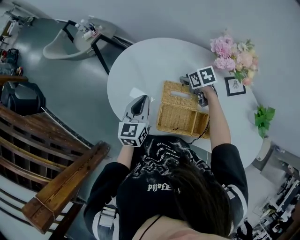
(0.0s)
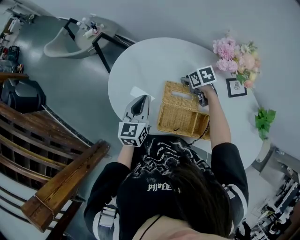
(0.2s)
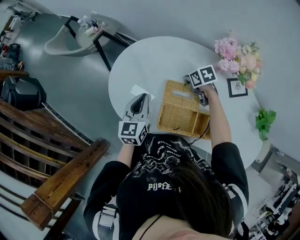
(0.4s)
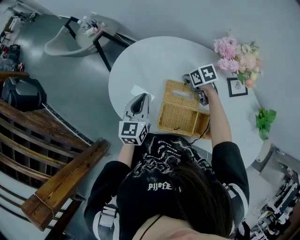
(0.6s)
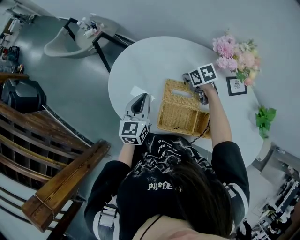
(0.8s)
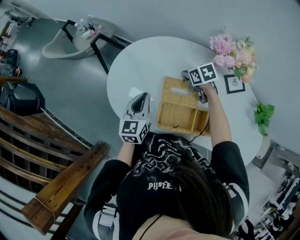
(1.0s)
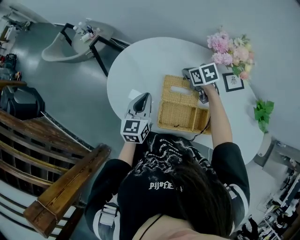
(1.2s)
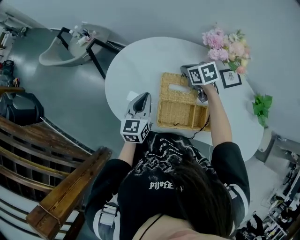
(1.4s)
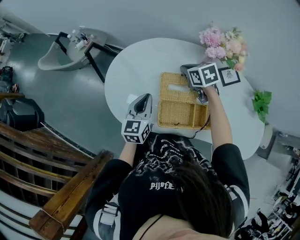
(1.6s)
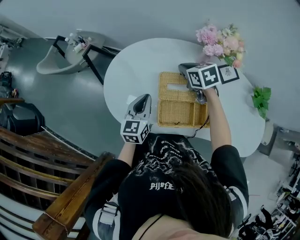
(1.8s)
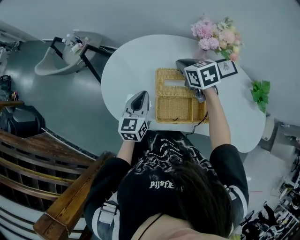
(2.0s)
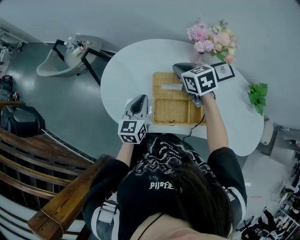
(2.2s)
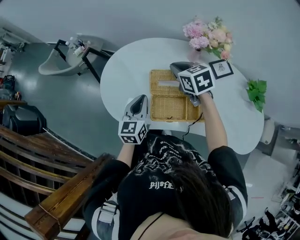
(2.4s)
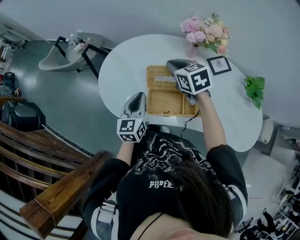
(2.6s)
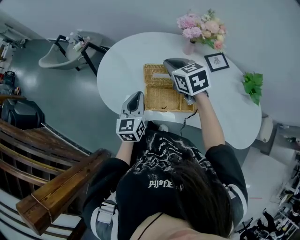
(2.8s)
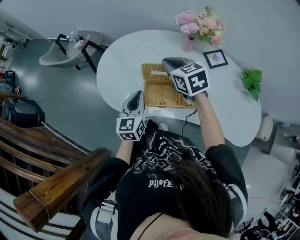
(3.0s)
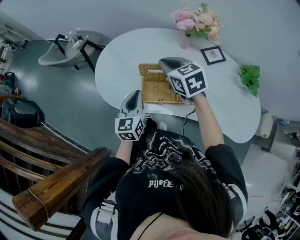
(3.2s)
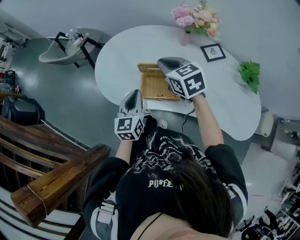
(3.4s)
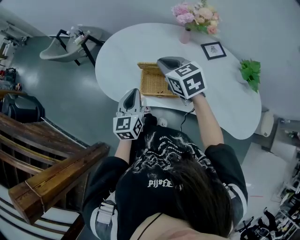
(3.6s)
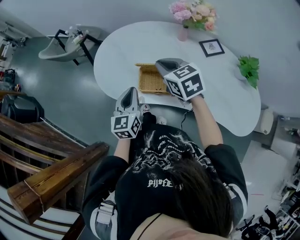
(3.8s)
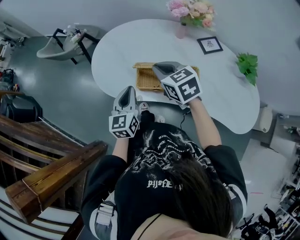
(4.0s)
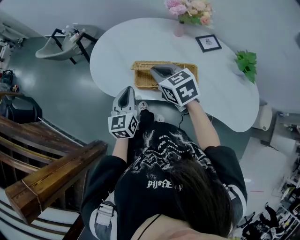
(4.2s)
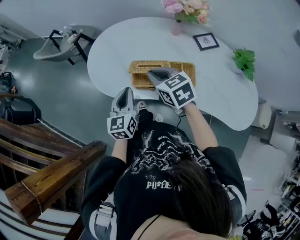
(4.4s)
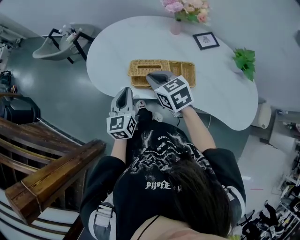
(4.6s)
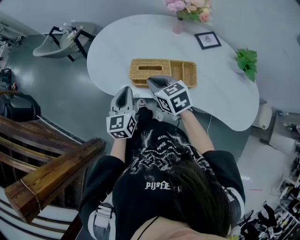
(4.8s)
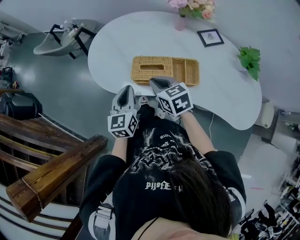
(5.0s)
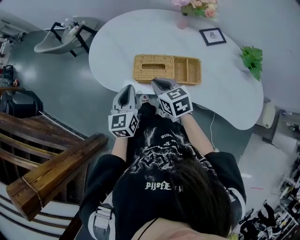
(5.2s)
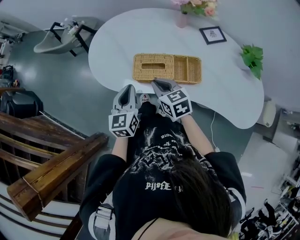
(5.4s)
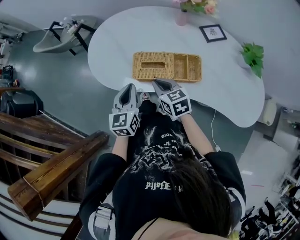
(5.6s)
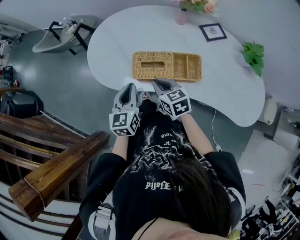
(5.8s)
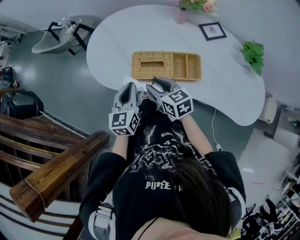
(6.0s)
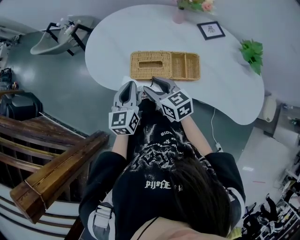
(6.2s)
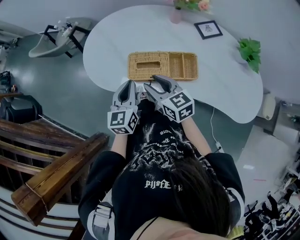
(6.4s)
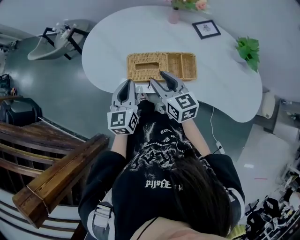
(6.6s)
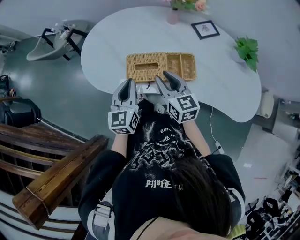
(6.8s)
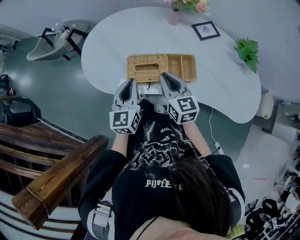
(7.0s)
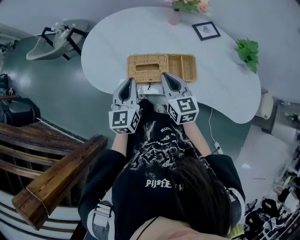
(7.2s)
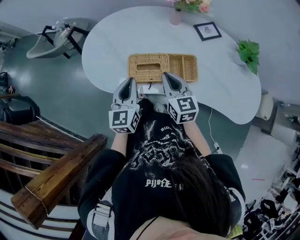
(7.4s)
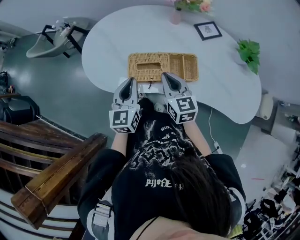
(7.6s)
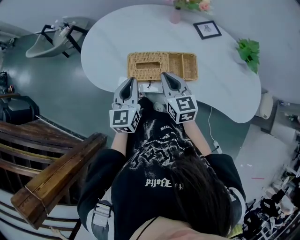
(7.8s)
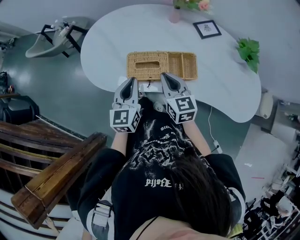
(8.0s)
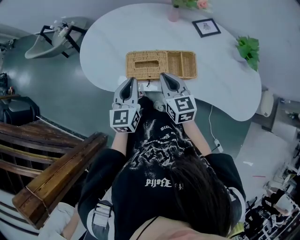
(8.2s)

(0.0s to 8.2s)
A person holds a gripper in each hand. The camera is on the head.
0.0s - 1.6s: The right gripper moves upward, approximately 10 cm, and closes.
1.6s - 3.2s: The right gripper travels backward and upward by approximately 20 cm, and changes its angle by about 20 degrees. Meanwhile the left gripper goes roughly 15 cm backward.
3.2s - 5.0s: The left gripper goes about 5 cm backward; the right gripper is displaced backward and downward by about 15 cm.
5.0s - 6.6s: The right gripper rotates approximately 20 degrees, and opens its fingers.
6.6s - 8.2s: The right gripper closes its fingers.

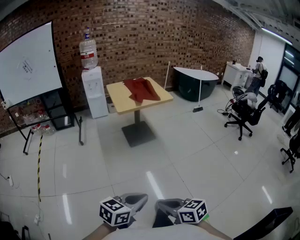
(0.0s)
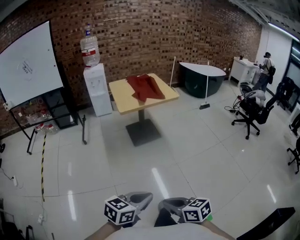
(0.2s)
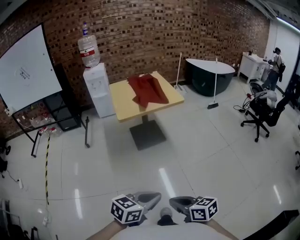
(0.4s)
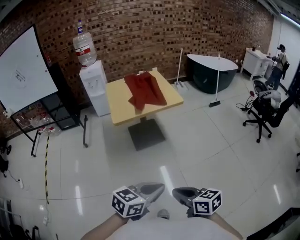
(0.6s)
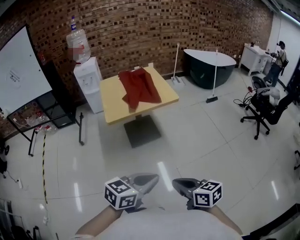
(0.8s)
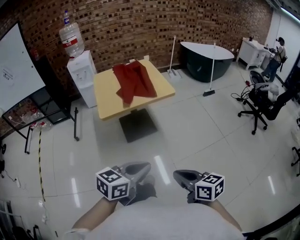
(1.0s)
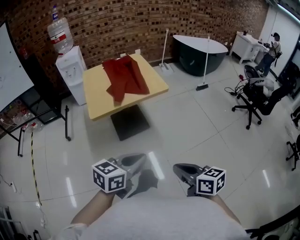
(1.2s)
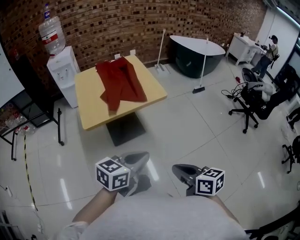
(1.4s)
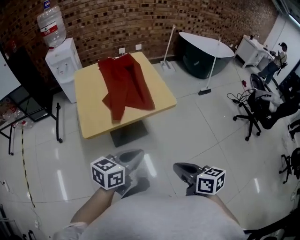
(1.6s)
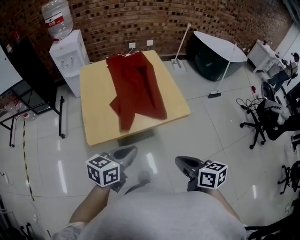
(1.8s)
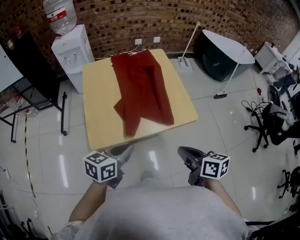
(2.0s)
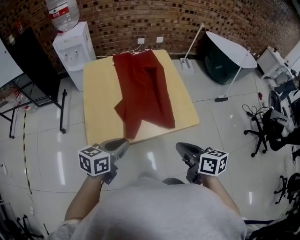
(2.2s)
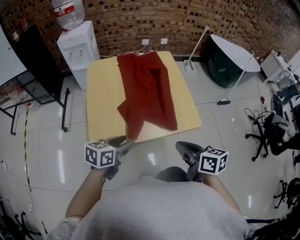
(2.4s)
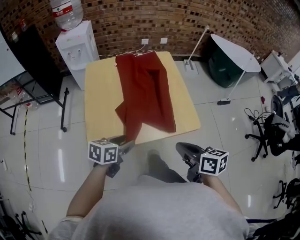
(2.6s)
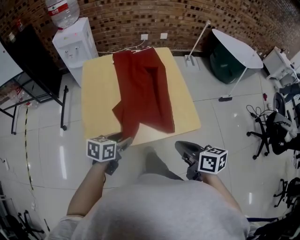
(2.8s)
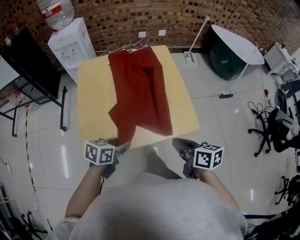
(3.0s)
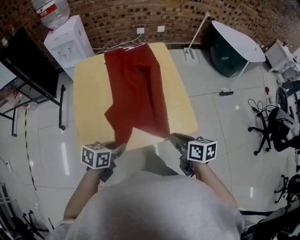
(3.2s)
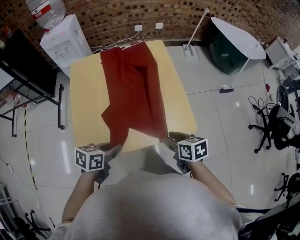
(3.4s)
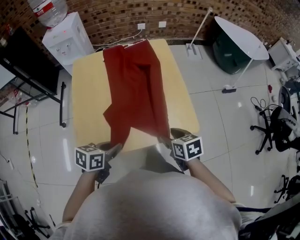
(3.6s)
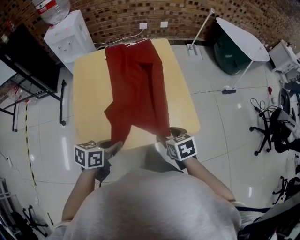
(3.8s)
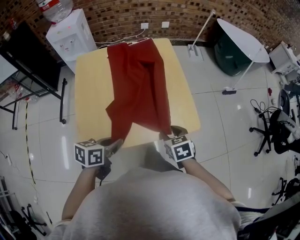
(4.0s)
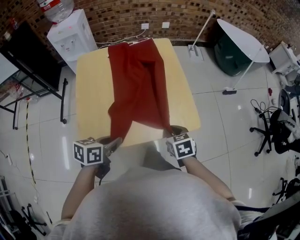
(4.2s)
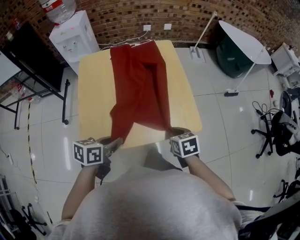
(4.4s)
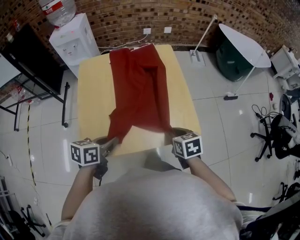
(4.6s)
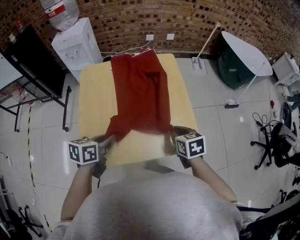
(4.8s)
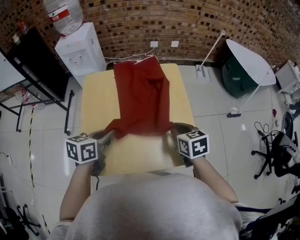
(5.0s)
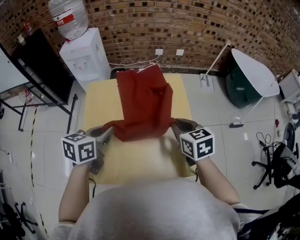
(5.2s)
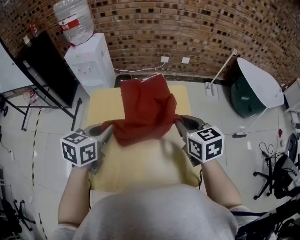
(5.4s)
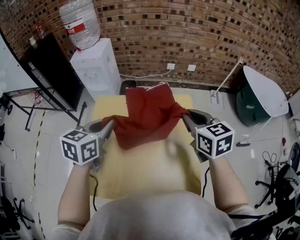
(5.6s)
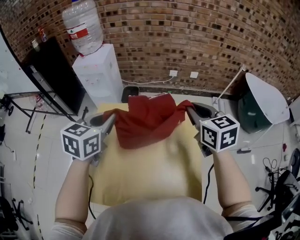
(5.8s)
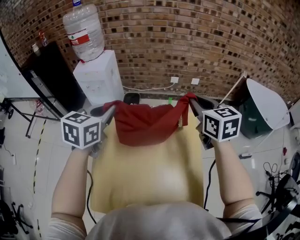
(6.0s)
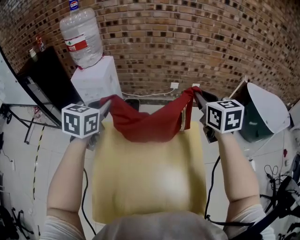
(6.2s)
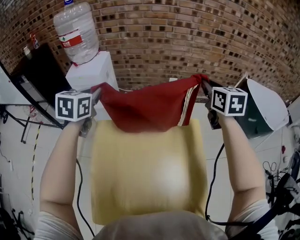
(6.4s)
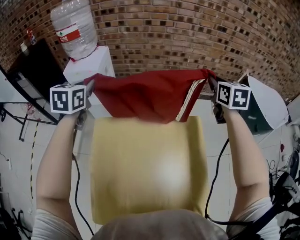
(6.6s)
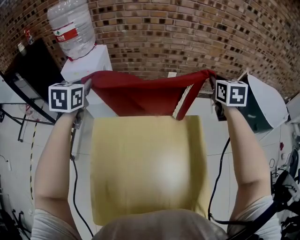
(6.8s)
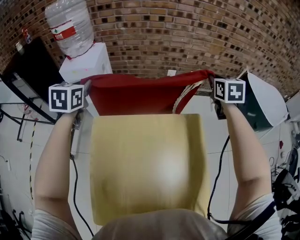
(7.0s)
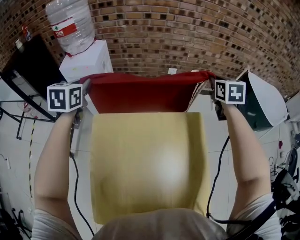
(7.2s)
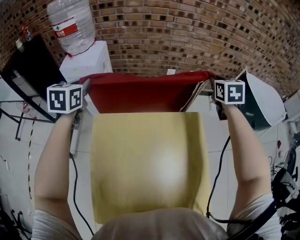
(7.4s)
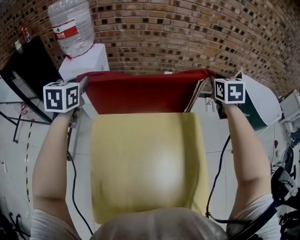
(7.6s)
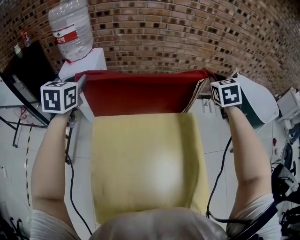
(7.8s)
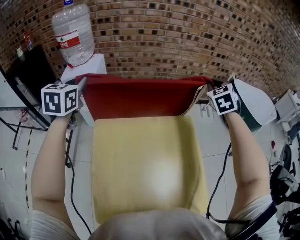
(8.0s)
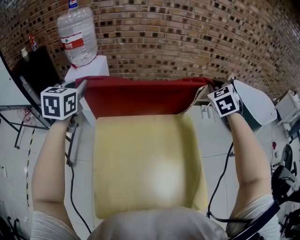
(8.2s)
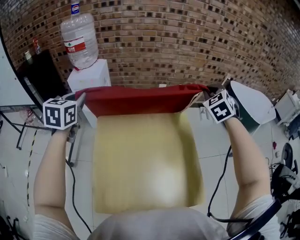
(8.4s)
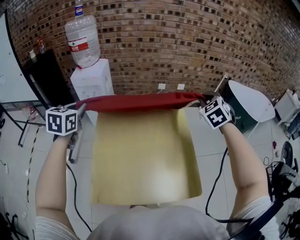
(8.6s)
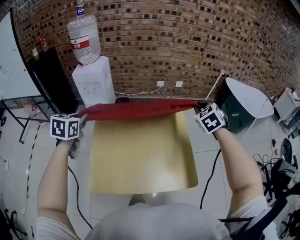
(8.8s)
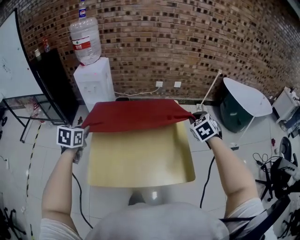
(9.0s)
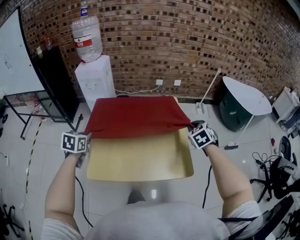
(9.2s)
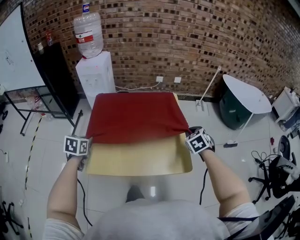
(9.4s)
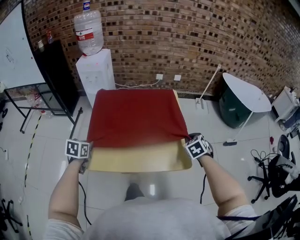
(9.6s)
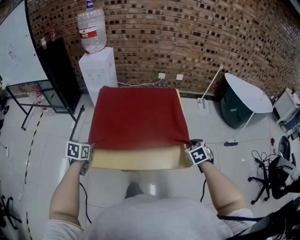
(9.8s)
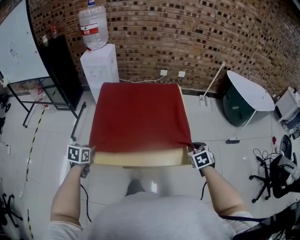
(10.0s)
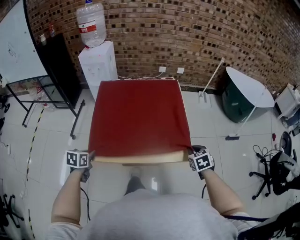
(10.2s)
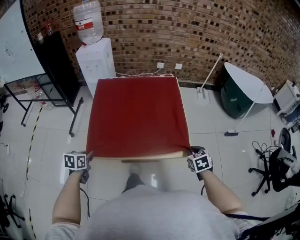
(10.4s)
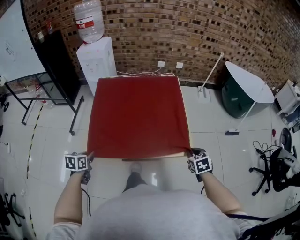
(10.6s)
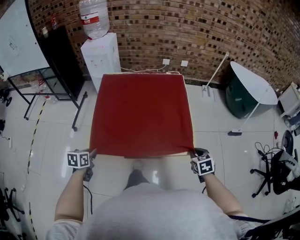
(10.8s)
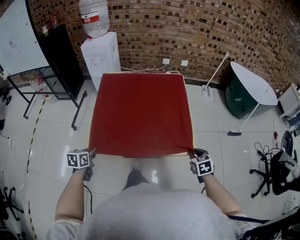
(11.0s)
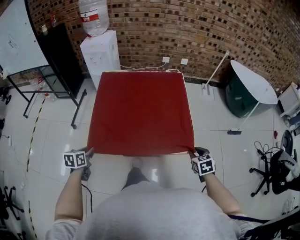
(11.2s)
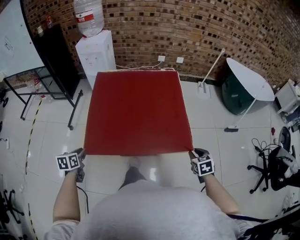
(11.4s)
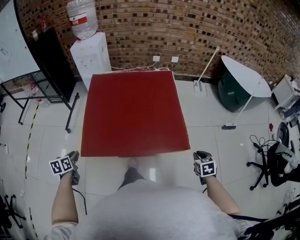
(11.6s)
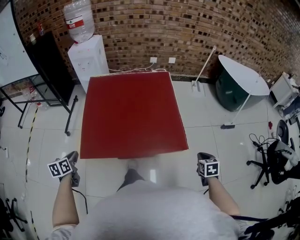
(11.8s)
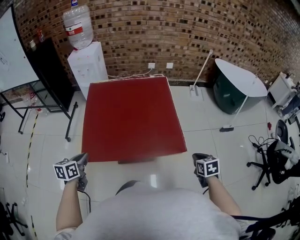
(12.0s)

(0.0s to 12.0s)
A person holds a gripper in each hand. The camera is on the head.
0.0s - 1.6s: Both grippers are carried forward, roughly 70 cm.
1.6s - 3.0s: The right gripper moves forward, approximately 30 cm, while the left gripper heads forward, downward and to the left, covering roughly 30 cm, rotates some 20 degrees, and opens.
3.0s - 4.4s: The left gripper closes up, while the right gripper is displaced downward and forward by roughly 10 cm, rotates roughly 30 degrees, and opens, then closes once more.
4.4s - 6.0s: The pair of grippers is taken forward, about 40 cm. Both grippers travel together upward, roughly 30 cm. The right gripper angles its fingers upward, by approximately 30 degrees, while the left gripper rotates approximately 40 degrees.
6.0s - 7.6s: The left gripper shifts some 25 cm forward and to the left. Meanwhile the right gripper moves forward, about 15 cm, and rotates approximately 30 degrees.
7.6s - 9.0s: The two grippers go approximately 35 cm backward. The right gripper turns by roughly 30 degrees.
9.0s - 10.4s: The two grippers go some 30 cm backward and downward. The right gripper rotates approximately 20 degrees.
10.4s - 12.0s: The right gripper heads to the right and backward, covering roughly 10 cm. The left gripper shifts approximately 5 cm upward, and travels to the left and back again, about 10 cm each way.

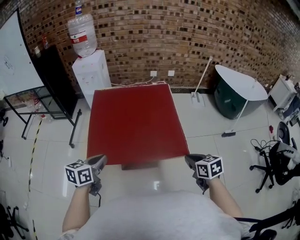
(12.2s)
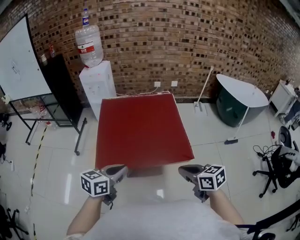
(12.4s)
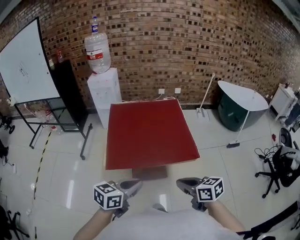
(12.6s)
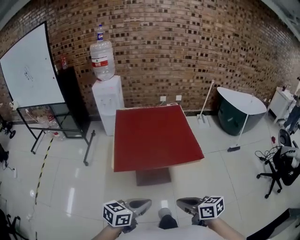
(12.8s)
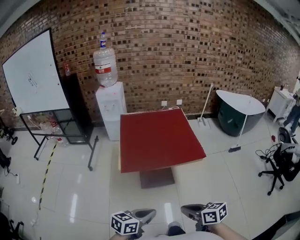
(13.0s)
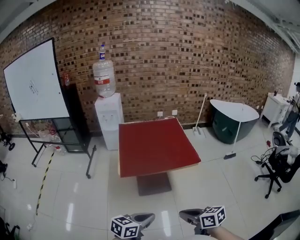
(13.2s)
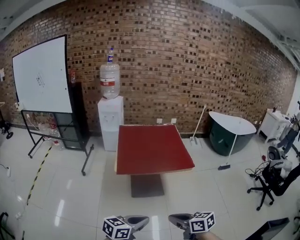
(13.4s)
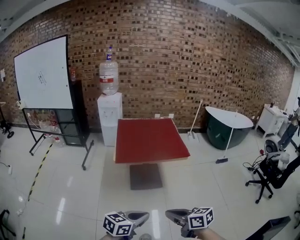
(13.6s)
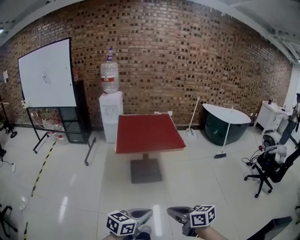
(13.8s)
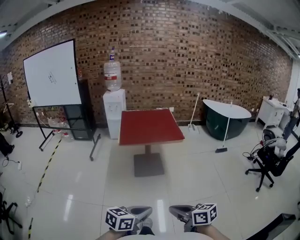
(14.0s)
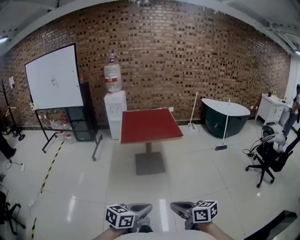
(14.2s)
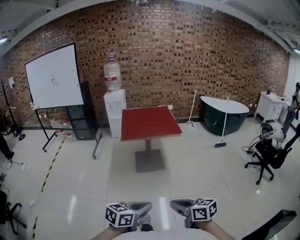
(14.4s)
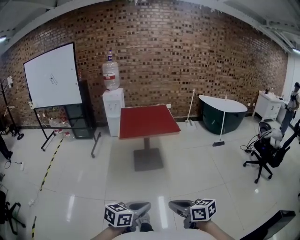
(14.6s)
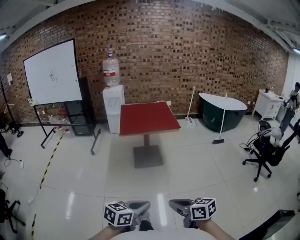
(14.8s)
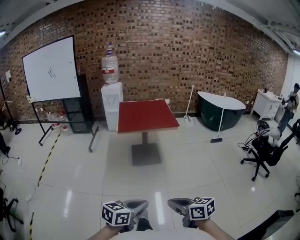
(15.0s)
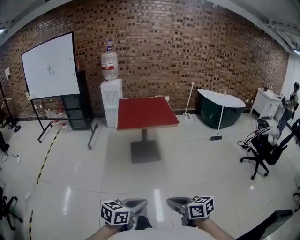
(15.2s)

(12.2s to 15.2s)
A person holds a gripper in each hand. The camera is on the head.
12.2s - 13.8s: The two grippers travel together, backward, some 60 cm. The left gripper swivels approximately 20 degrees. Meanwhile the right gripper changes its angle by roughly 30 degrees.
13.8s - 15.2s: Both grippers travel together backward, roughly 15 cm.
